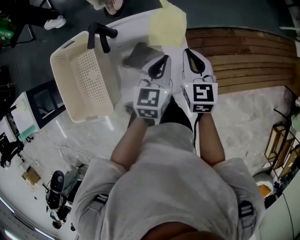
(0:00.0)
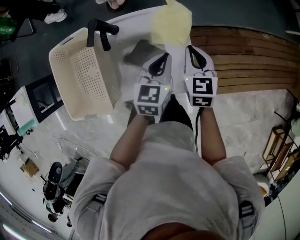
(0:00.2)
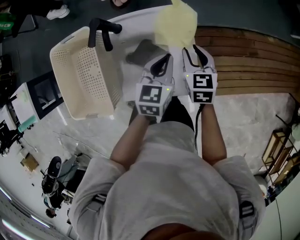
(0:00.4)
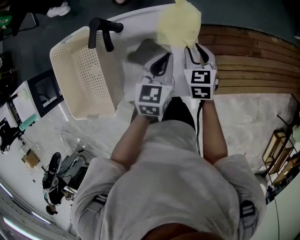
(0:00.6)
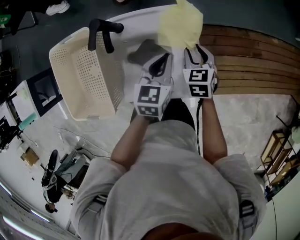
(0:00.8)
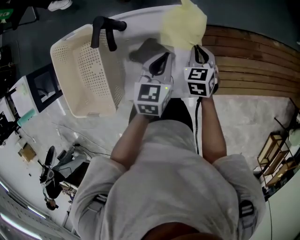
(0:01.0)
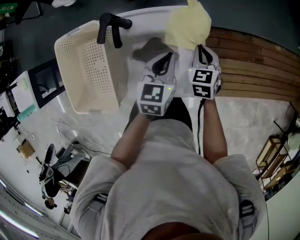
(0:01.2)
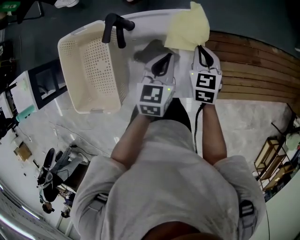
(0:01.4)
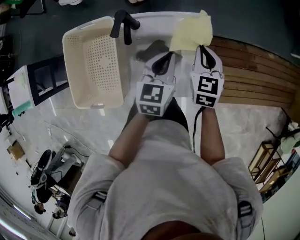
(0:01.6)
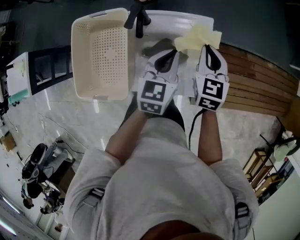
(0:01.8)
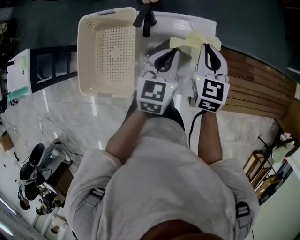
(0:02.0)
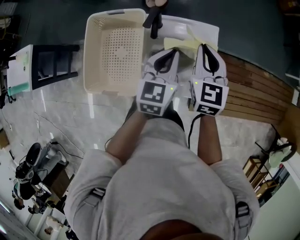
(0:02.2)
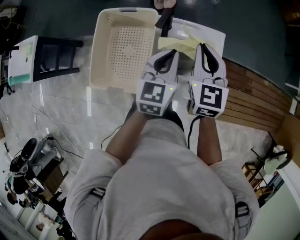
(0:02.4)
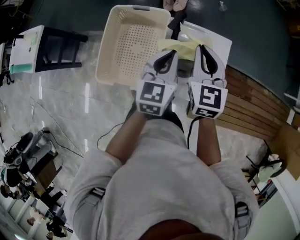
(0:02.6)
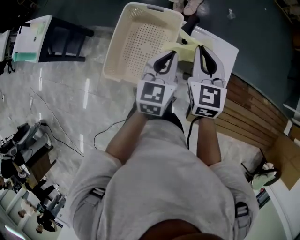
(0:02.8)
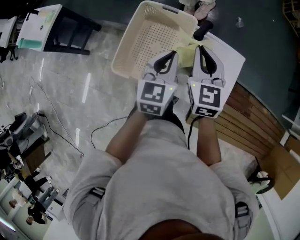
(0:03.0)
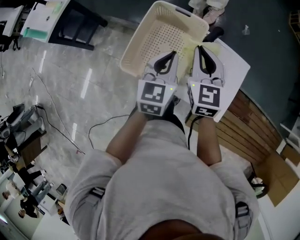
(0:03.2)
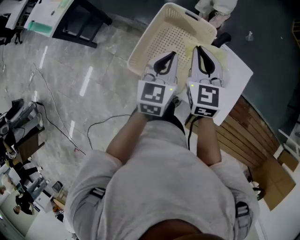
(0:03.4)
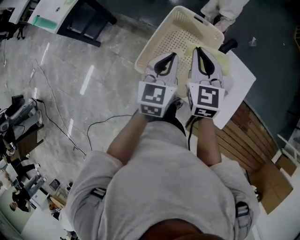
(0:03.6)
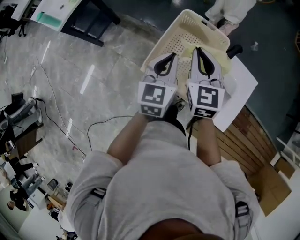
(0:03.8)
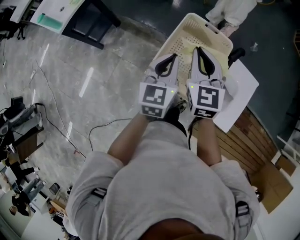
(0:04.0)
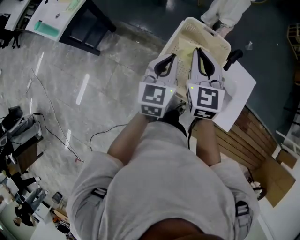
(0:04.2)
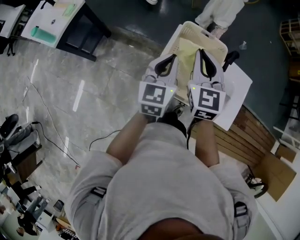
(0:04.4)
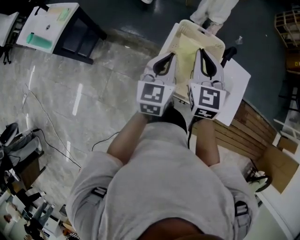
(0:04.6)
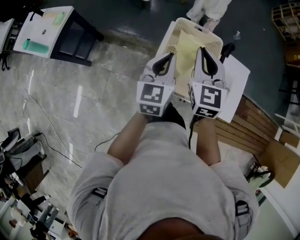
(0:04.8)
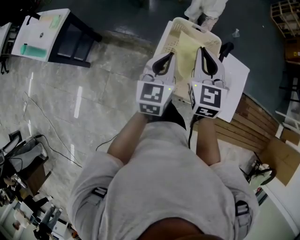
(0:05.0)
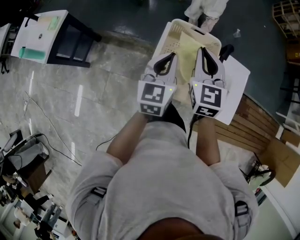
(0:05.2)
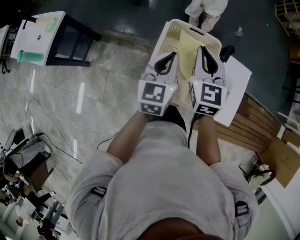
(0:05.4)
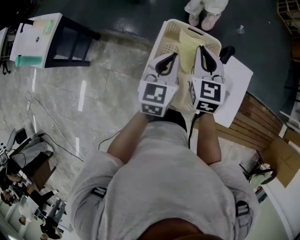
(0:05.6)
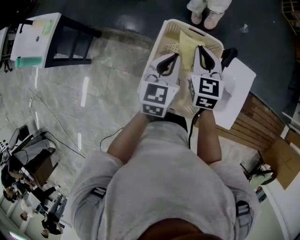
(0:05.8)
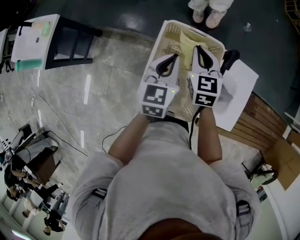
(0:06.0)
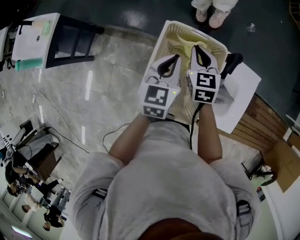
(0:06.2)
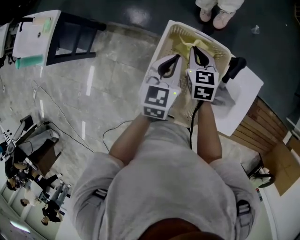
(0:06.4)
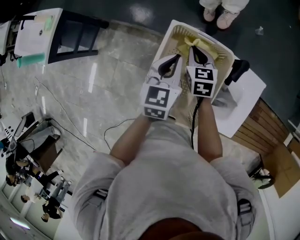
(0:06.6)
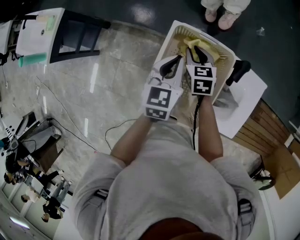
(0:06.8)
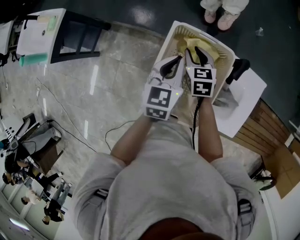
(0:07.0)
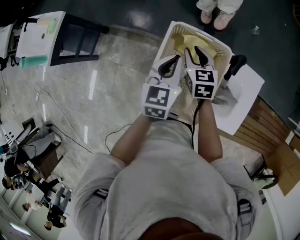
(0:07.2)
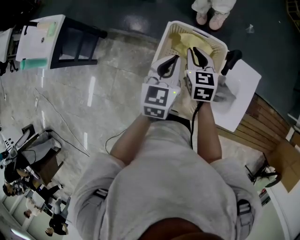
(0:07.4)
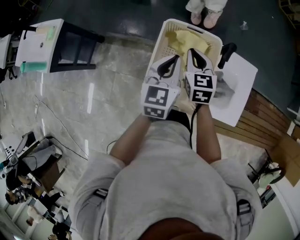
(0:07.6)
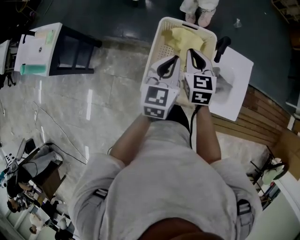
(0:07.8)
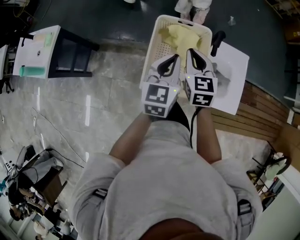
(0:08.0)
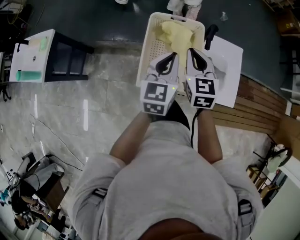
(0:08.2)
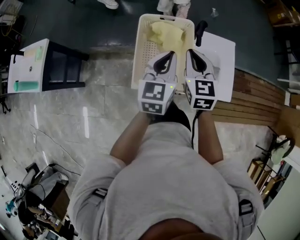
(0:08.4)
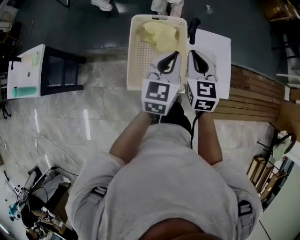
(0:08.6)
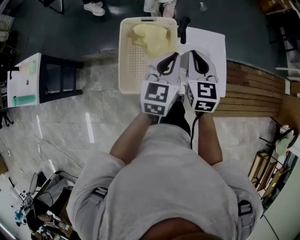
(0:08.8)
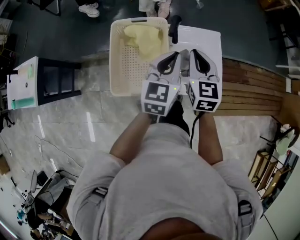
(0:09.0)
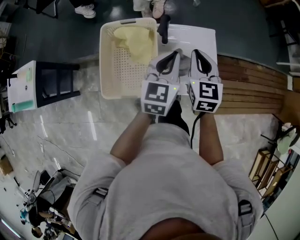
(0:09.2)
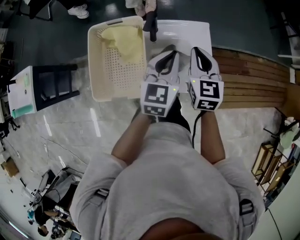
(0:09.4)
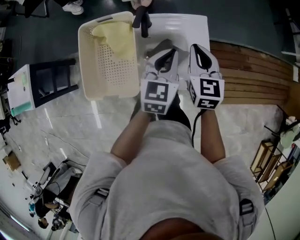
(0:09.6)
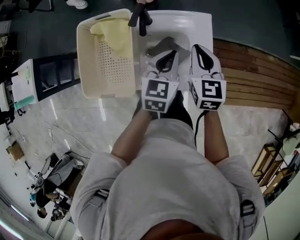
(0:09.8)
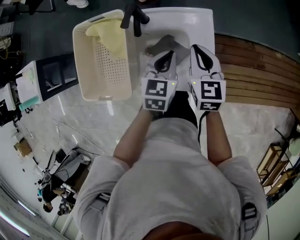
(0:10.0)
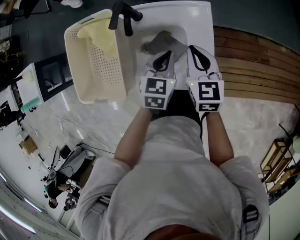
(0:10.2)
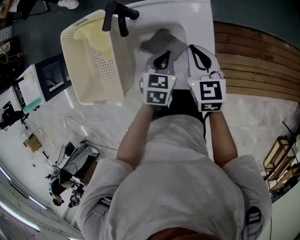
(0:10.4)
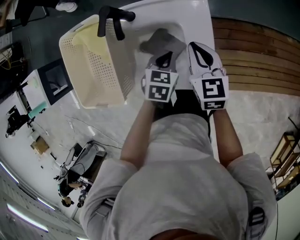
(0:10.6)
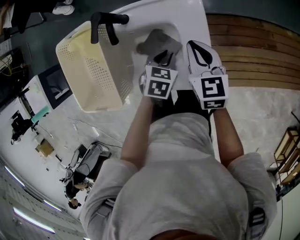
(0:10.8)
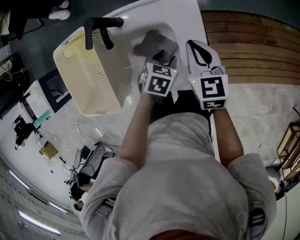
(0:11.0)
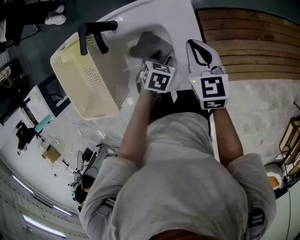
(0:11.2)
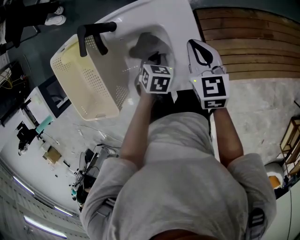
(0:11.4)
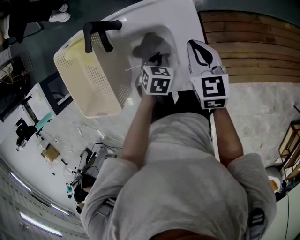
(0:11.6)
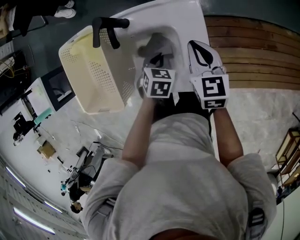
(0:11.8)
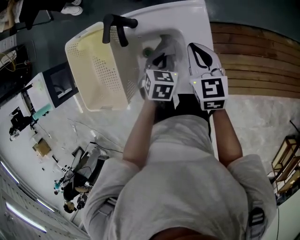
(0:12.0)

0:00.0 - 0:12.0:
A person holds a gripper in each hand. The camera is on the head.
0:00.0 - 0:01.6: The left gripper moves to the left, about 5 cm, while the right gripper shifts about 5 cm forward, moves about 15 cm downward and comes back, and opens, then closes again.
0:01.6 - 0:03.0: The grippers both shift to the left and upward by approximately 25 cm. The left gripper changes its angle by approximately 20 degrees. The right gripper swivels about 30 degrees.
0:03.0 - 0:04.4: The grippers both shift to the left by roughly 20 cm.
0:04.4 - 0:06.0: The right gripper goes approximately 20 cm downward, forward and to the right. Meanwhile the left gripper moves forward, downward and to the right, approximately 15 cm.
0:06.0 - 0:07.6: The right gripper moves roughly 10 cm downward and comes back, and opens and closes again.
0:07.6 - 0:09.0: The right gripper heads to the right and upward, covering about 20 cm, while the left gripper goes some 20 cm to the right.
0:09.0 - 0:10.4: The right gripper moves to the right and downward, some 25 cm, while the left gripper travels downward and to the right by roughly 30 cm, and points its fingers roughly 30 degrees further downward.
0:10.4 - 0:12.0: The left gripper goes downward and returns, roughly 10 cm each way, and opens and closes again.

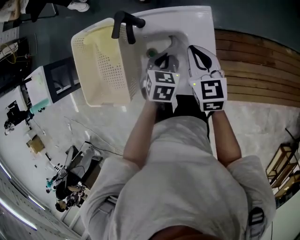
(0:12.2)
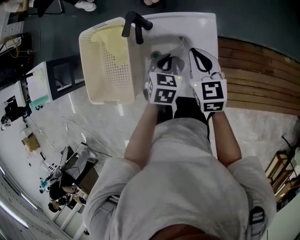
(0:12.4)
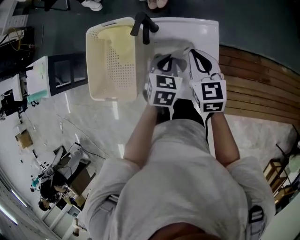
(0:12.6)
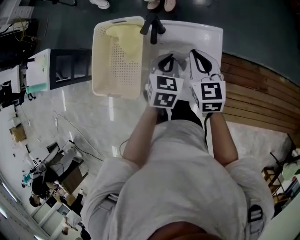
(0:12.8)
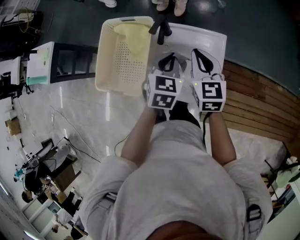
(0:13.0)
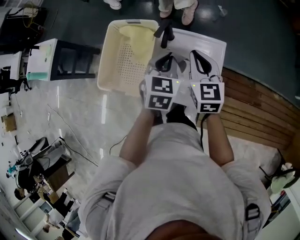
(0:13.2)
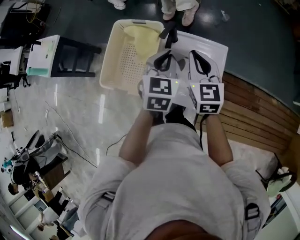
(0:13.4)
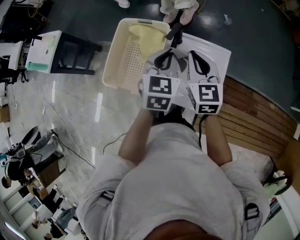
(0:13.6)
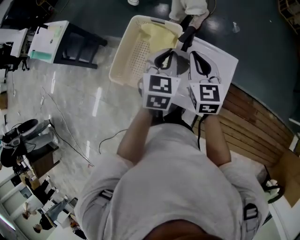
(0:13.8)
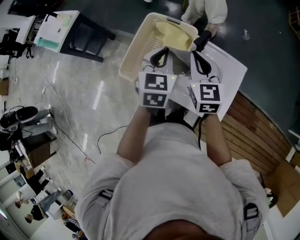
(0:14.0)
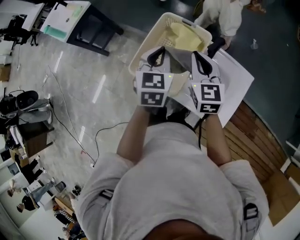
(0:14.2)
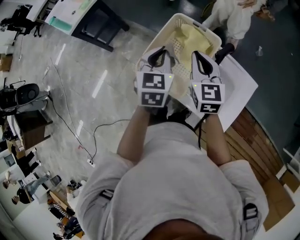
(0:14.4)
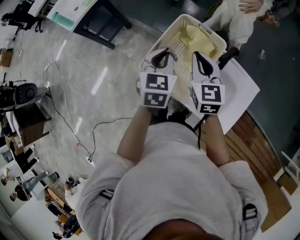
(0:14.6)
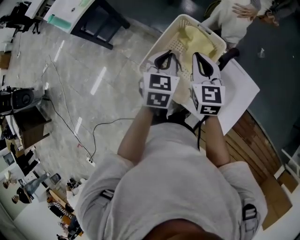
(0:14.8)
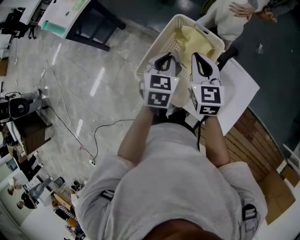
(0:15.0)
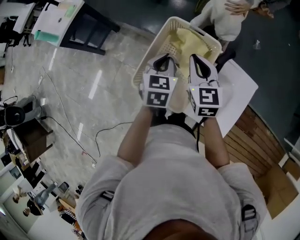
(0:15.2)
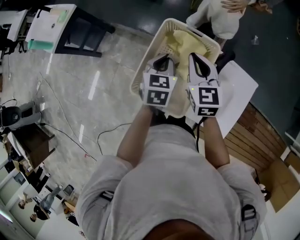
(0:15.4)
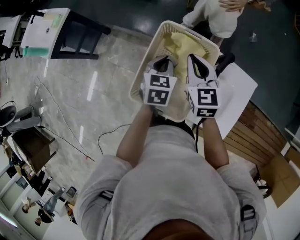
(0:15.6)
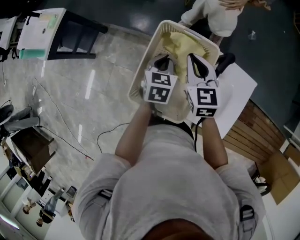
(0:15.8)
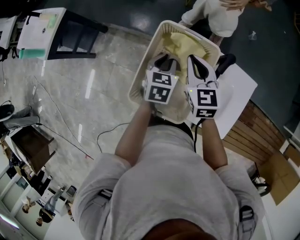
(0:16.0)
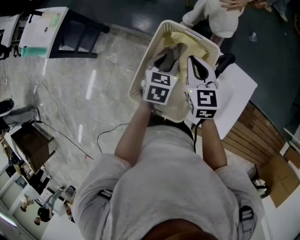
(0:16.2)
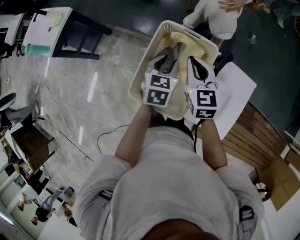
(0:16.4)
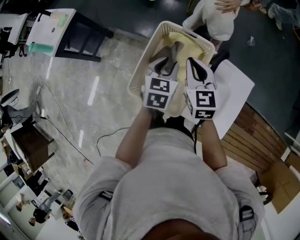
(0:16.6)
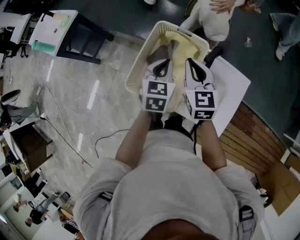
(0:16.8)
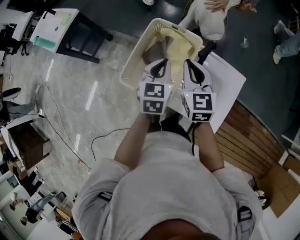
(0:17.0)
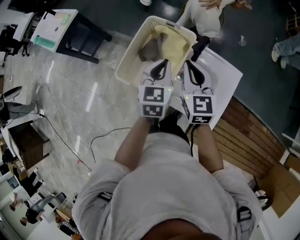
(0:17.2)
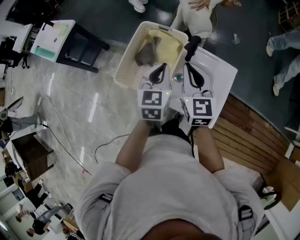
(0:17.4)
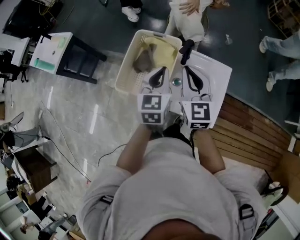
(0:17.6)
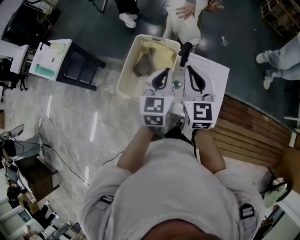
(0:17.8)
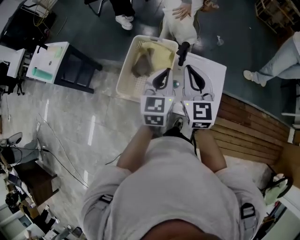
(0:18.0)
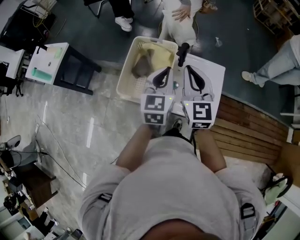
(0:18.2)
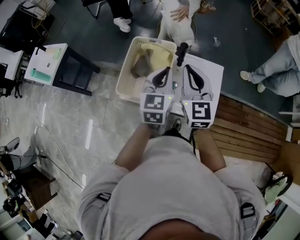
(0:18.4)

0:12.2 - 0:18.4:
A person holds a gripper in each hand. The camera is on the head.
0:12.2 - 0:13.8: The right gripper moves to the left and upward, approximately 20 cm, and rotates about 20 degrees, while the left gripper goes approximately 25 cm upward and to the left, and rotates approximately 40 degrees.
0:13.8 - 0:15.4: The left gripper moves to the left, downward and forward, about 20 cm; the right gripper shifts some 20 cm to the left and forward.
0:15.4 - 0:16.8: The left gripper moves approximately 5 cm, and opens, then closes again; the right gripper moves approximately 5 cm.
0:16.8 - 0:18.4: The two grippers go roughly 15 cm upward, backward and to the right. The right gripper turns by some 20 degrees. The left gripper swivels roughly 20 degrees.

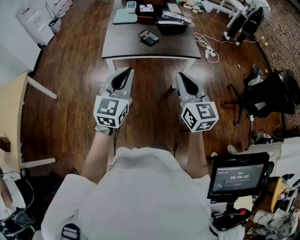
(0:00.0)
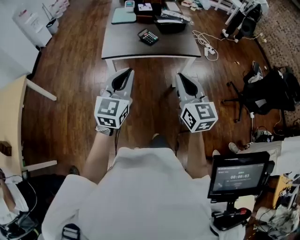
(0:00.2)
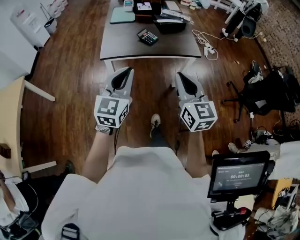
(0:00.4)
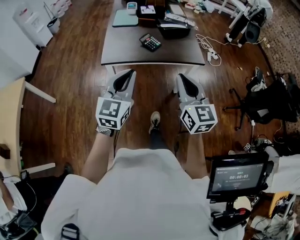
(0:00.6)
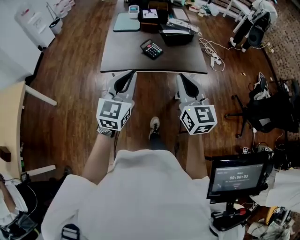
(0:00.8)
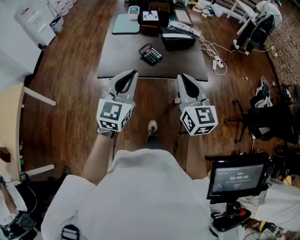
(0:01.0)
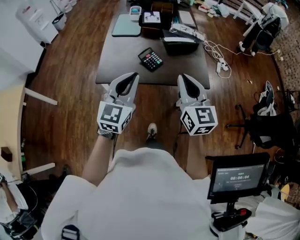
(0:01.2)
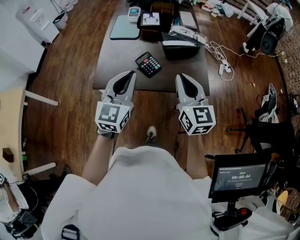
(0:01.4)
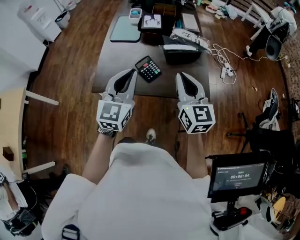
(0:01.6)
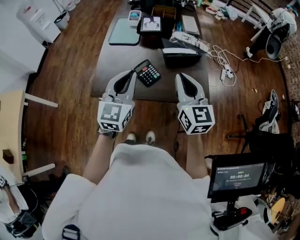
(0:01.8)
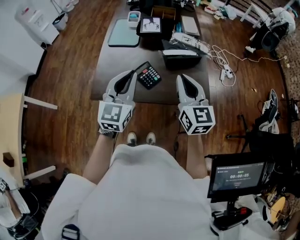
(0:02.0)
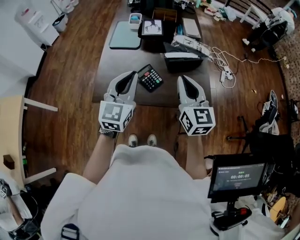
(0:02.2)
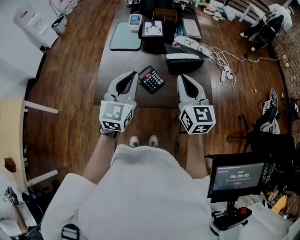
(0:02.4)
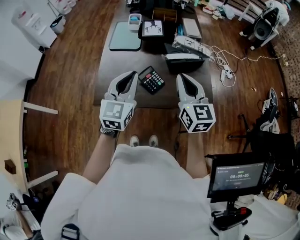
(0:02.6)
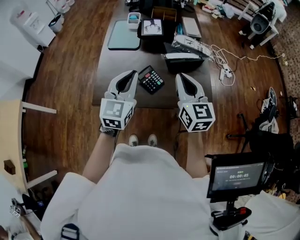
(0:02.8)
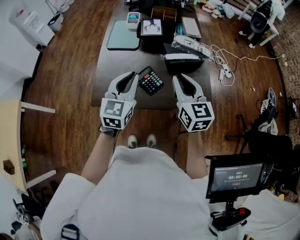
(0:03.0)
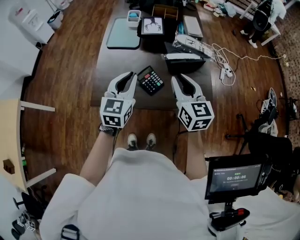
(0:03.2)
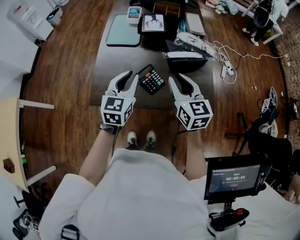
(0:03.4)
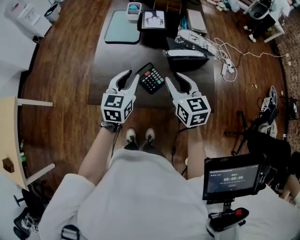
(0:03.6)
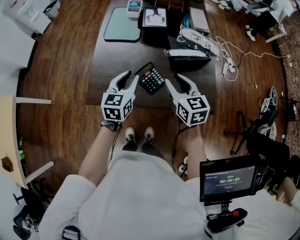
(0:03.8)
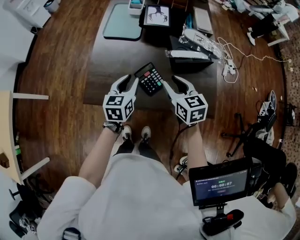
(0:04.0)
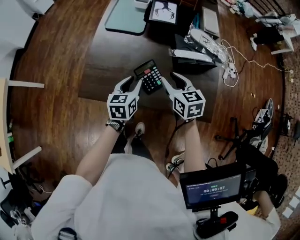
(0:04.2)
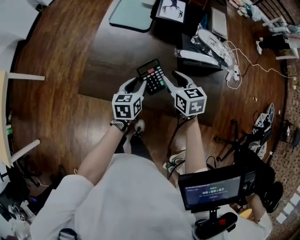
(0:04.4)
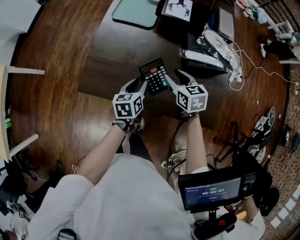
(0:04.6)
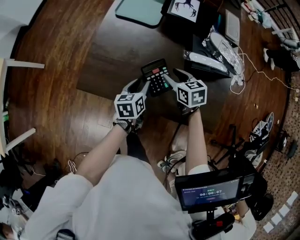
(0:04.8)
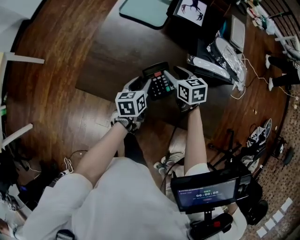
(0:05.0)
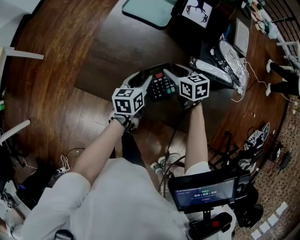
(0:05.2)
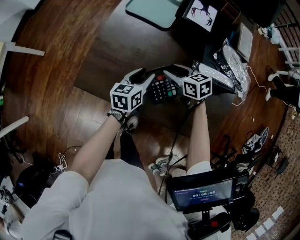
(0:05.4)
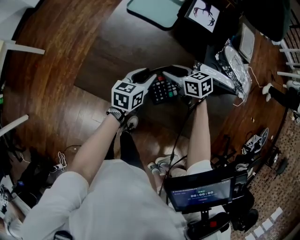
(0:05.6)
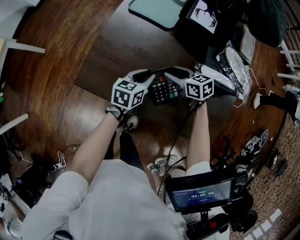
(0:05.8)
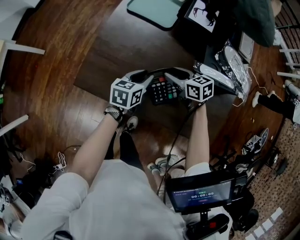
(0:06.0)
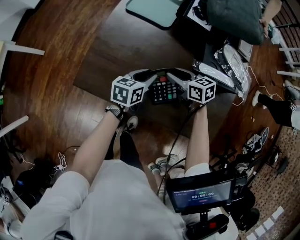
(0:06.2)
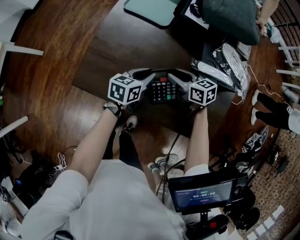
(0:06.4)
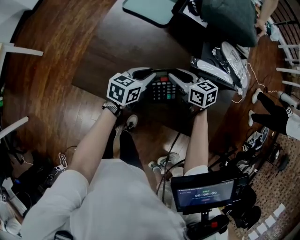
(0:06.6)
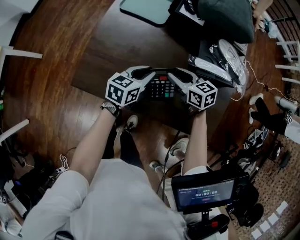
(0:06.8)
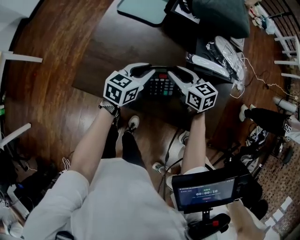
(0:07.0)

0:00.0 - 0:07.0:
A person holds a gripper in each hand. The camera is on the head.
0:00.0 - 0:01.4: Both grippers move forward, roughly 30 cm.
0:01.4 - 0:02.8: The two grippers go roughly 10 cm forward.
0:02.8 - 0:04.2: The right gripper goes roughly 20 cm downward and forward, changes its angle by some 30 degrees, and opens up. Meanwhile the left gripper goes approximately 25 cm downward, rotates approximately 40 degrees, and opens up.
0:04.2 - 0:05.6: The right gripper moves downward and forward, about 15 cm, and swivels about 40 degrees; the left gripper heads downward and forward, covering approximately 10 cm.
0:05.6 - 0:07.0: The left gripper moves approximately 5 cm. Meanwhile the right gripper shifts some 5 cm upward.
